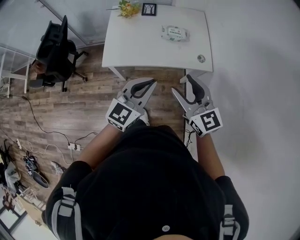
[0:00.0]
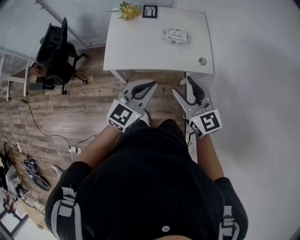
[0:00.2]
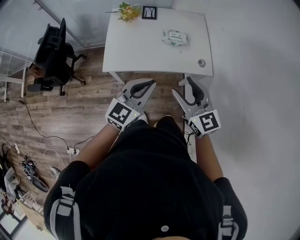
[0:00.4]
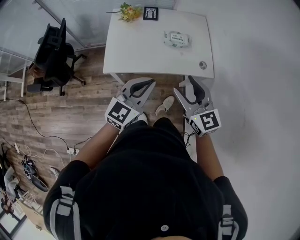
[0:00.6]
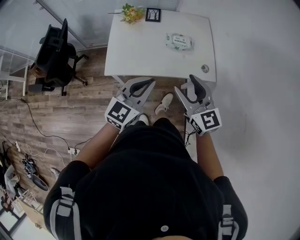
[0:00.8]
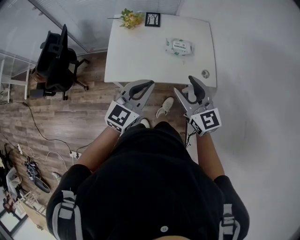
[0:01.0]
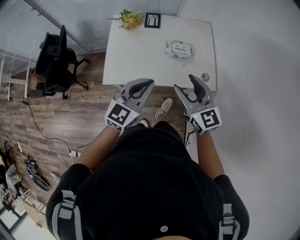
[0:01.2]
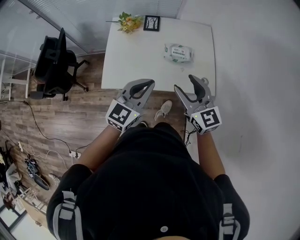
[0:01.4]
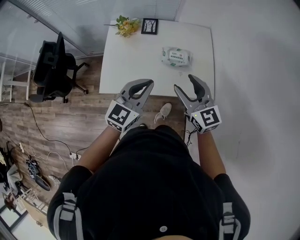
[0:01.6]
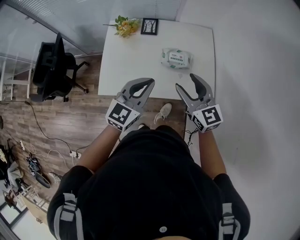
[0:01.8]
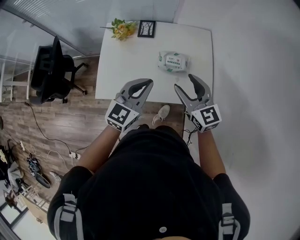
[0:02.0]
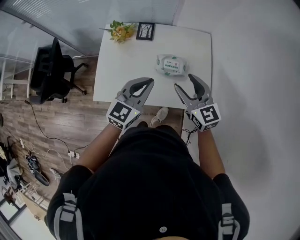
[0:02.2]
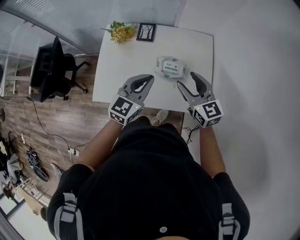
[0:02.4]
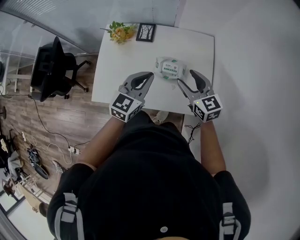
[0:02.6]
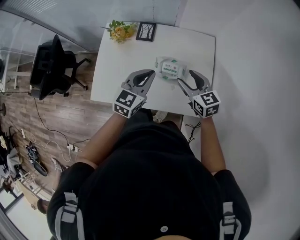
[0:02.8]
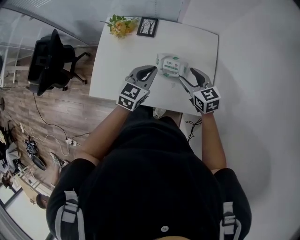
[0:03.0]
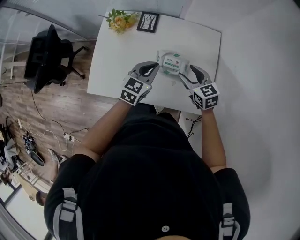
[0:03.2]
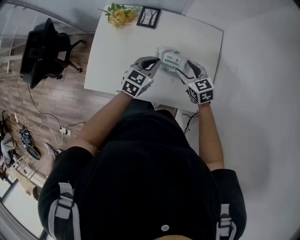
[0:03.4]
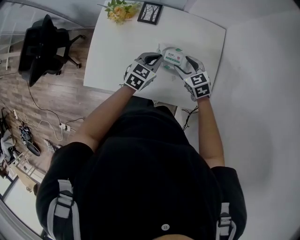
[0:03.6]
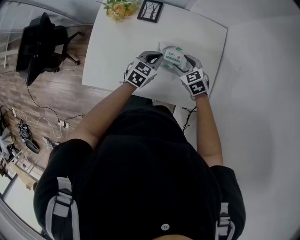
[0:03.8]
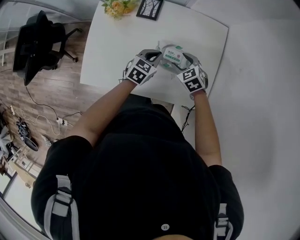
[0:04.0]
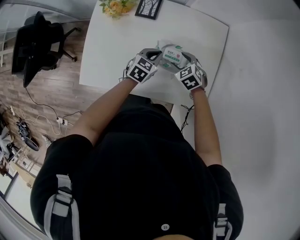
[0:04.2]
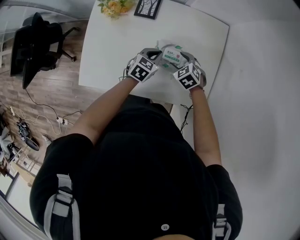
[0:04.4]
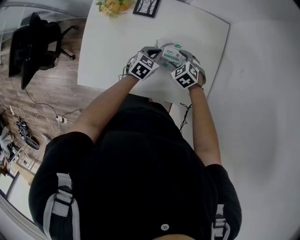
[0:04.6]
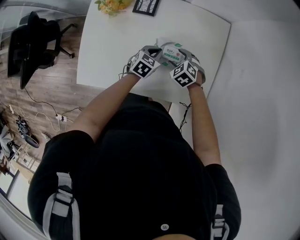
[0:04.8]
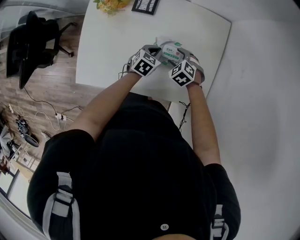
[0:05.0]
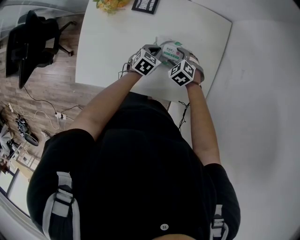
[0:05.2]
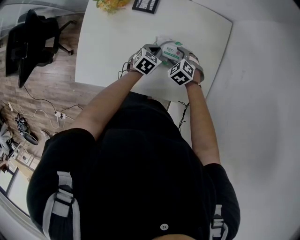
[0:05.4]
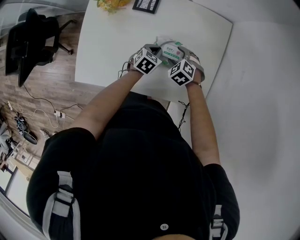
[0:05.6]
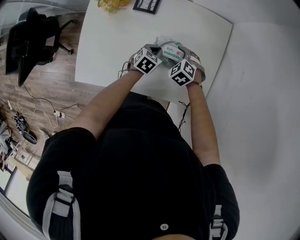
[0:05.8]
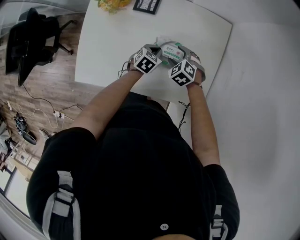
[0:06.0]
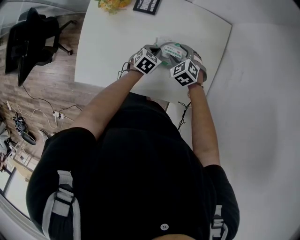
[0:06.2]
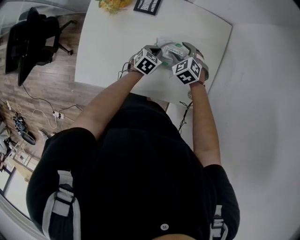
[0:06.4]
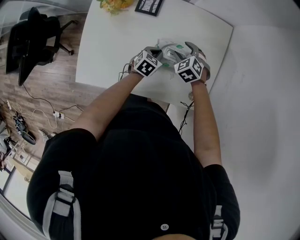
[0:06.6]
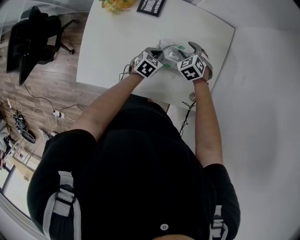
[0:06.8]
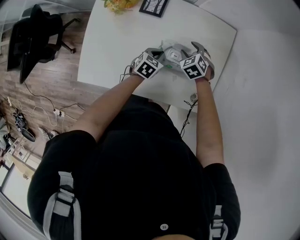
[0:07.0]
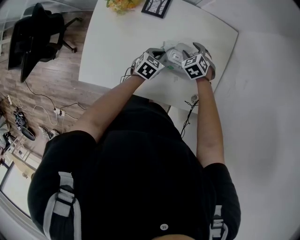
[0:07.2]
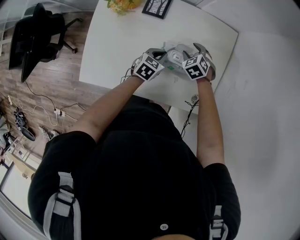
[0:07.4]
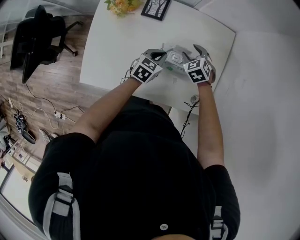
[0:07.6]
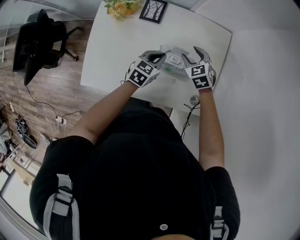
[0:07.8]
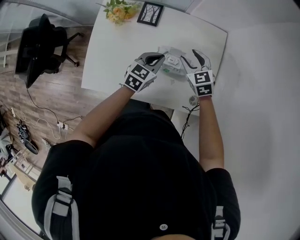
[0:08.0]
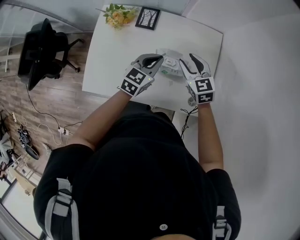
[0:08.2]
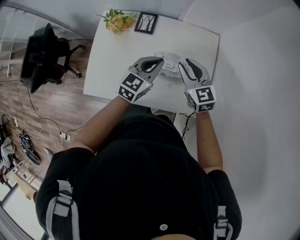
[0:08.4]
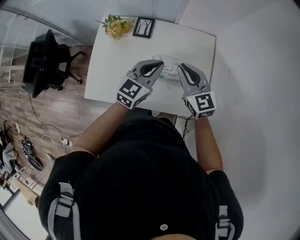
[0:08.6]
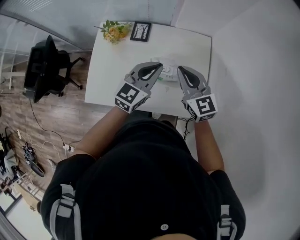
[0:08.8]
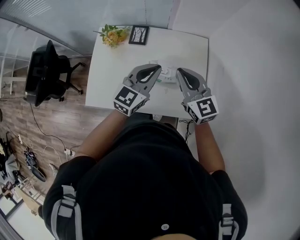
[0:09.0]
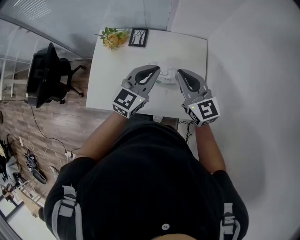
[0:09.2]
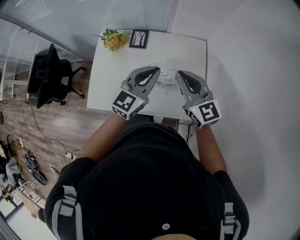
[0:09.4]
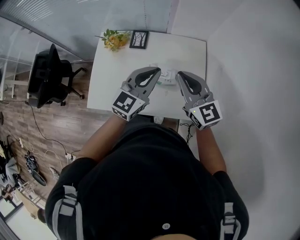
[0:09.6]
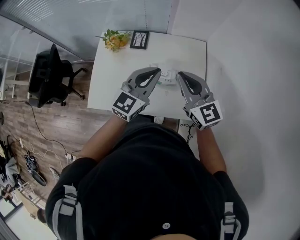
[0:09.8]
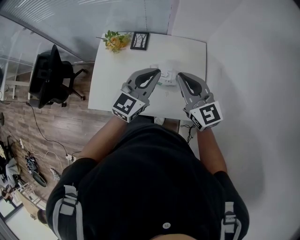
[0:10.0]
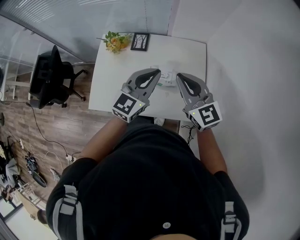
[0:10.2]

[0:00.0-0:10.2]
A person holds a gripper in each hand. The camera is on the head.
0.0 to 1.4 s: The grippers both shift forward by some 20 cm.
1.4 to 3.0 s: The two grippers go approximately 30 cm forward, downward and to the right. The right gripper swivels about 20 degrees.
3.0 to 4.4 s: The two grippers go some 20 cm downward. The right gripper angles its fingers downward, by approximately 30 degrees. The left gripper rotates roughly 20 degrees.
4.4 to 5.8 s: The left gripper shifts roughly 5 cm downward.
5.8 to 7.2 s: The right gripper shifts some 5 cm forward.
7.2 to 8.8 s: The grippers both shift upward by about 30 cm. The left gripper points its fingers roughly 40 degrees further upward, while the right gripper angles its fingers upward, by some 50 degrees, and closes up.
8.8 to 10.2 s: The grippers both shift upward by roughly 5 cm.

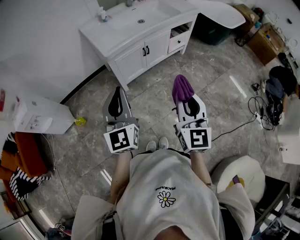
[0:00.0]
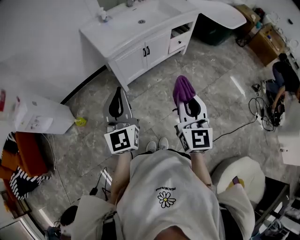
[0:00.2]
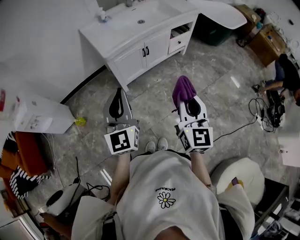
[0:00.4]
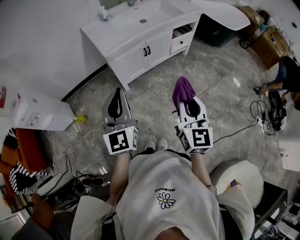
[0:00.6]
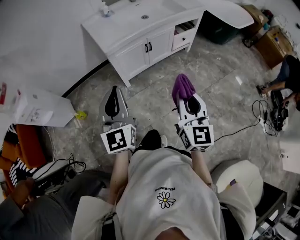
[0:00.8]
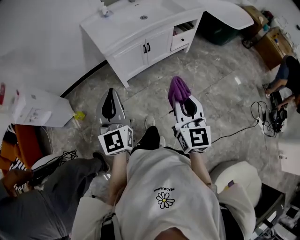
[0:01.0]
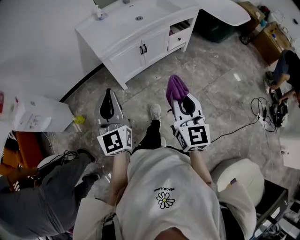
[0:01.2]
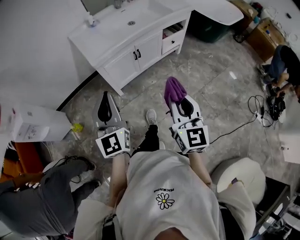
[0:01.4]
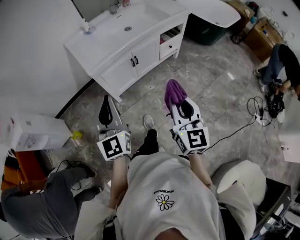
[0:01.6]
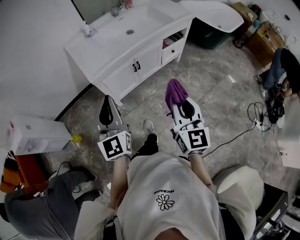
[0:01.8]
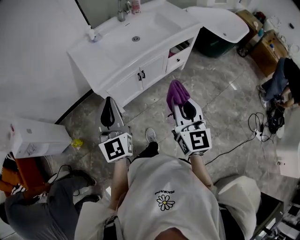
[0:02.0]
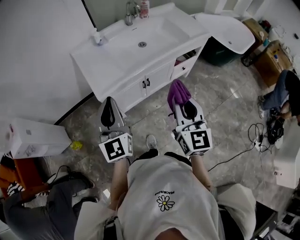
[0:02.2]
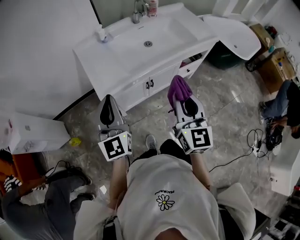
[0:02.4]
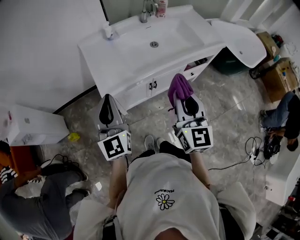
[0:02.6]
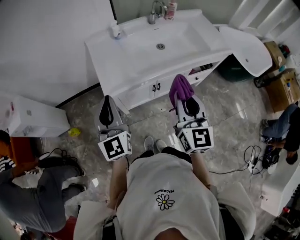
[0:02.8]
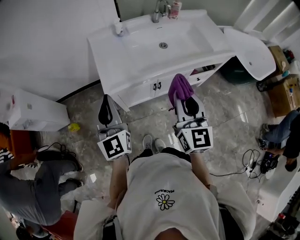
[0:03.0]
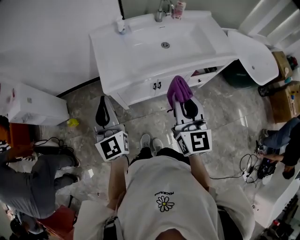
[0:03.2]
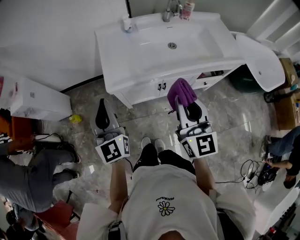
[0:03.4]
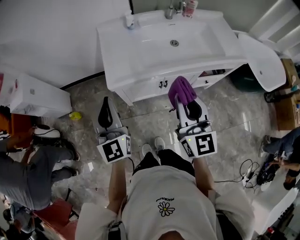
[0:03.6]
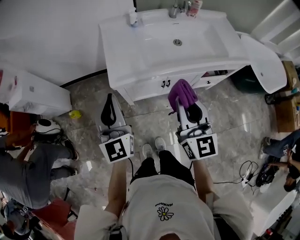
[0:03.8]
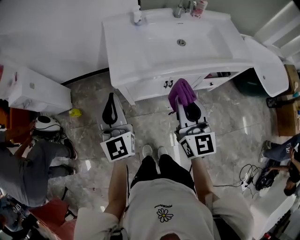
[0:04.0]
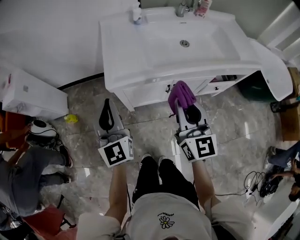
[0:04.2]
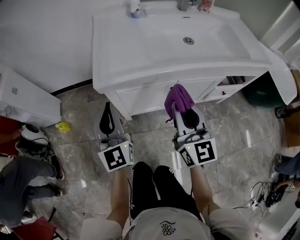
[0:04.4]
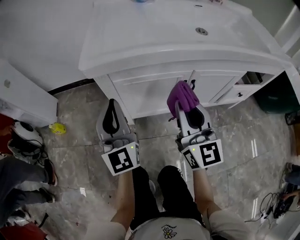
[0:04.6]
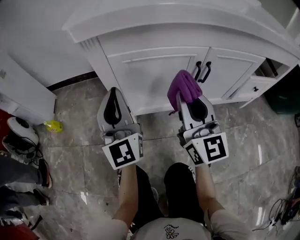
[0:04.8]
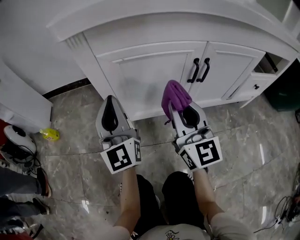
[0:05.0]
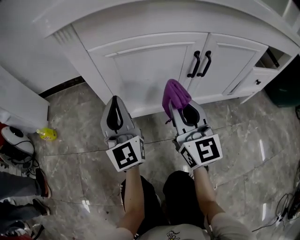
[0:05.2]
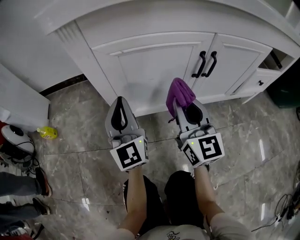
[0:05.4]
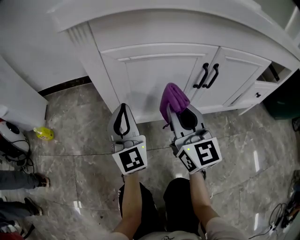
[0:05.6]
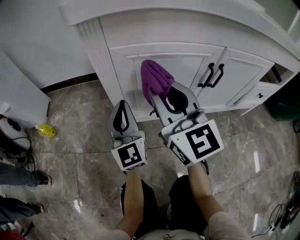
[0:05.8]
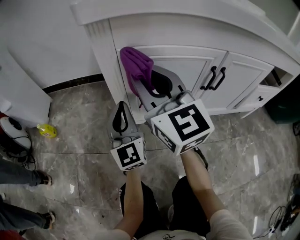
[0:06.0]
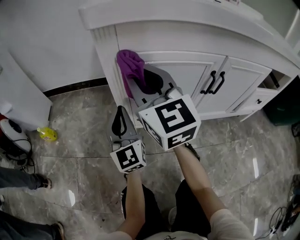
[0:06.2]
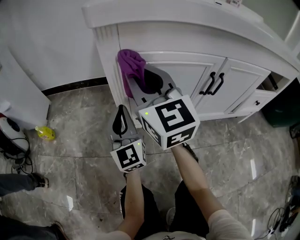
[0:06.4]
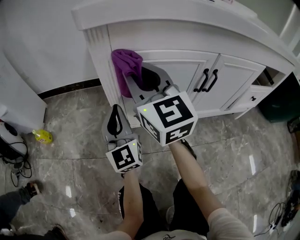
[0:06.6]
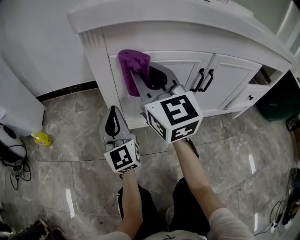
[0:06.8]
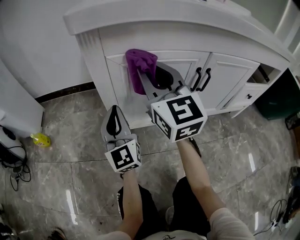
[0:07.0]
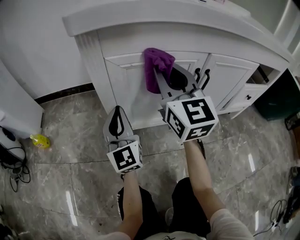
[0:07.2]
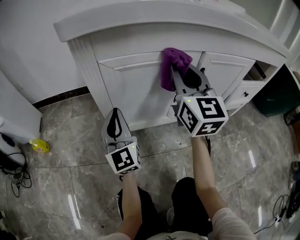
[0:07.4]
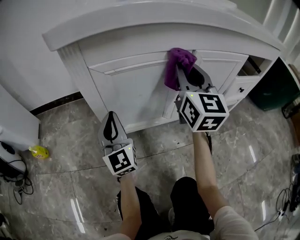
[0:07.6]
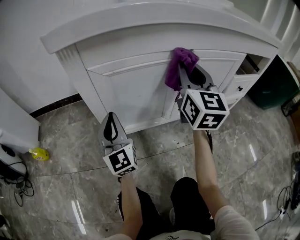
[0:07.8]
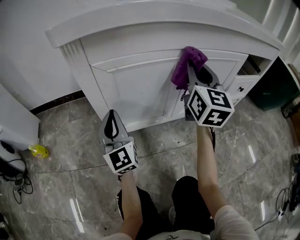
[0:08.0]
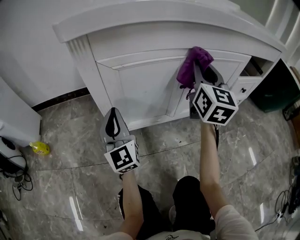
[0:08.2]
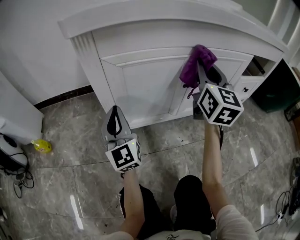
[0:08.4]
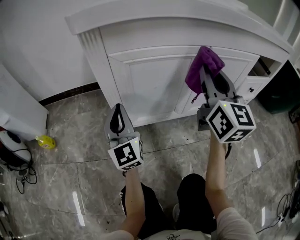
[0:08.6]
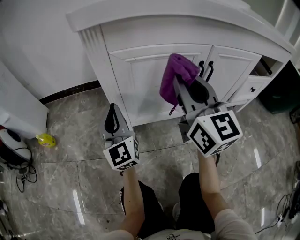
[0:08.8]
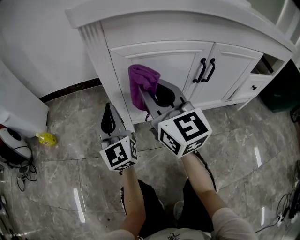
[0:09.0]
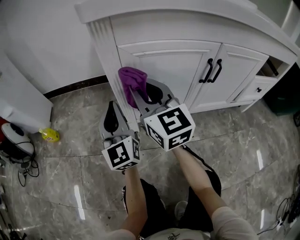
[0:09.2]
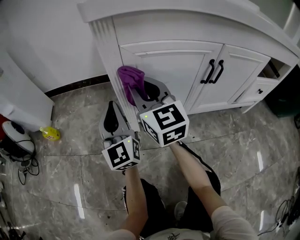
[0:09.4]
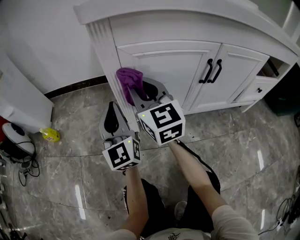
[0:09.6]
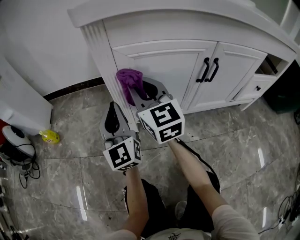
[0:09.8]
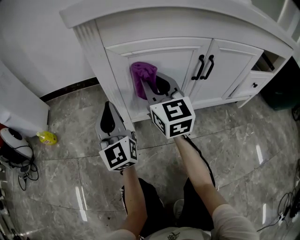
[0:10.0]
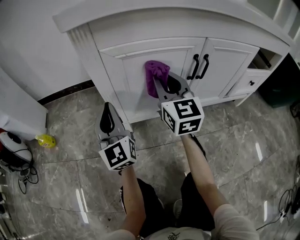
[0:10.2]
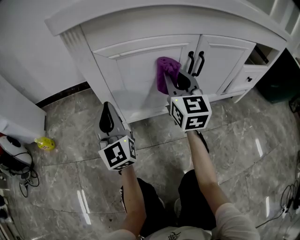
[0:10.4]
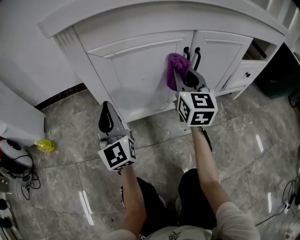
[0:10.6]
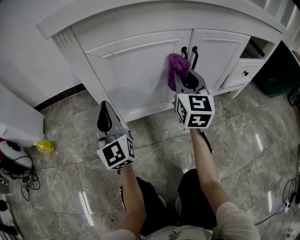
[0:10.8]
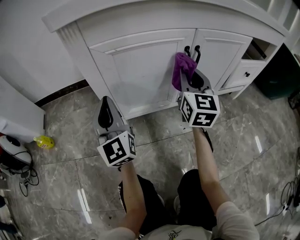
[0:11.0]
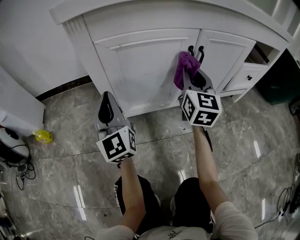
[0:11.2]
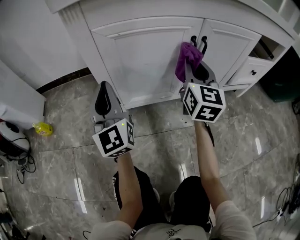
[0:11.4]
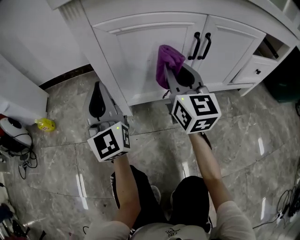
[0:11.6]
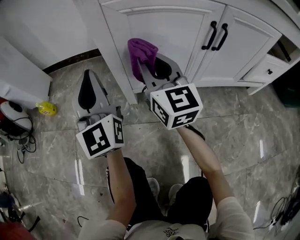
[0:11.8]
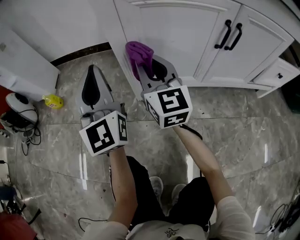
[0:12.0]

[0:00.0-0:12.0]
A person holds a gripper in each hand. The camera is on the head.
0.0 to 1.6 s: The two grippers go approximately 10 cm forward and to the right.
1.6 to 3.0 s: The two grippers go about 25 cm forward. The left gripper swivels roughly 20 degrees.
3.0 to 4.4 s: Both grippers move downward, roughly 25 cm.
4.4 to 6.0 s: The left gripper moves downward, roughly 30 cm, while the right gripper travels downward, to the left and forward by roughly 30 cm, and turns by approximately 20 degrees.
6.0 to 7.6 s: The right gripper heads to the right, covering about 20 cm, and rotates about 30 degrees.
7.6 to 9.0 s: The left gripper is displaced to the left by some 5 cm; the right gripper is displaced to the left by some 20 cm, and turns by some 30 degrees.
9.0 to 10.4 s: The right gripper goes some 15 cm to the right, and swivels approximately 20 degrees.
10.4 to 12.0 s: The right gripper moves to the left, roughly 15 cm, and rotates about 20 degrees. The left gripper heads to the left, covering roughly 5 cm.

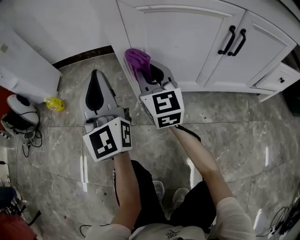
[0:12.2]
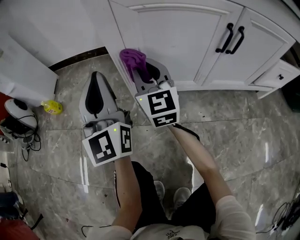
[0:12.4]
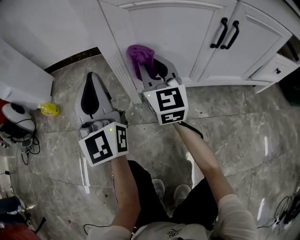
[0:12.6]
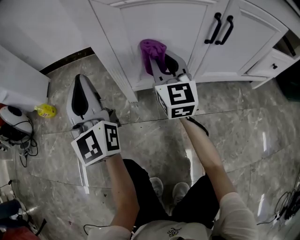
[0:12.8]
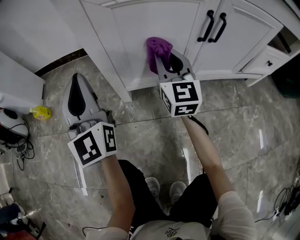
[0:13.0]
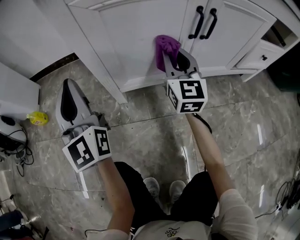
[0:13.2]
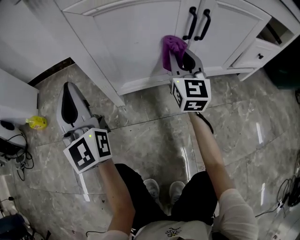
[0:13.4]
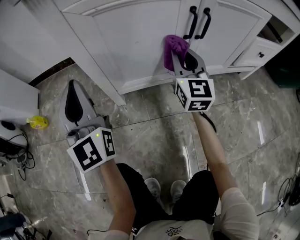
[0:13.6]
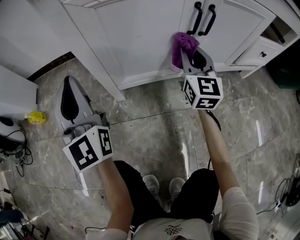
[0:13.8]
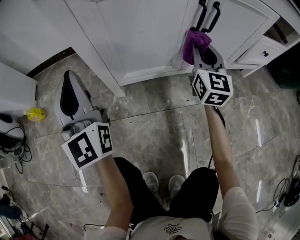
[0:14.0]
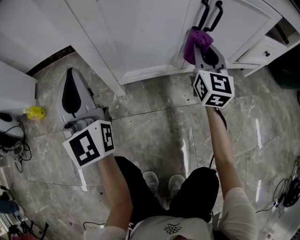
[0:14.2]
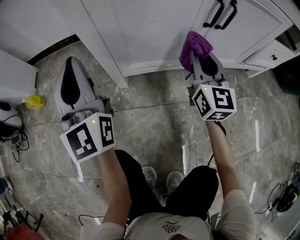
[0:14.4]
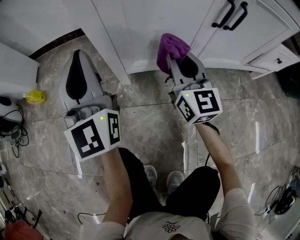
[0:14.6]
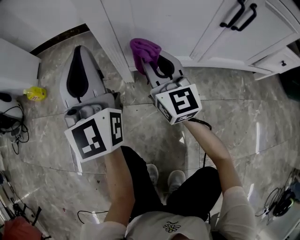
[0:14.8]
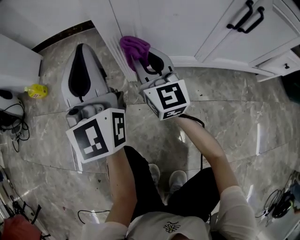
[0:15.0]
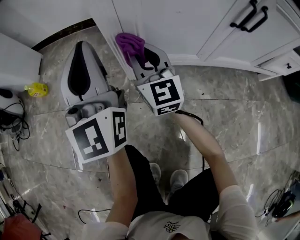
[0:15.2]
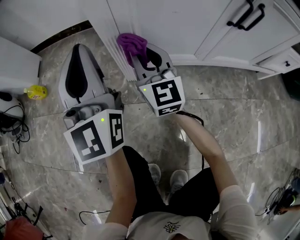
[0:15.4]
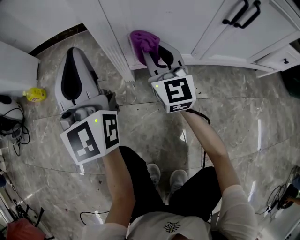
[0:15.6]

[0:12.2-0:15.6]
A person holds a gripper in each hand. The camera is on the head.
12.2 to 13.8 s: The right gripper moves to the right, approximately 25 cm, and rotates approximately 20 degrees.
13.8 to 15.6 s: The right gripper is displaced to the left by roughly 20 cm, and swivels approximately 20 degrees.
